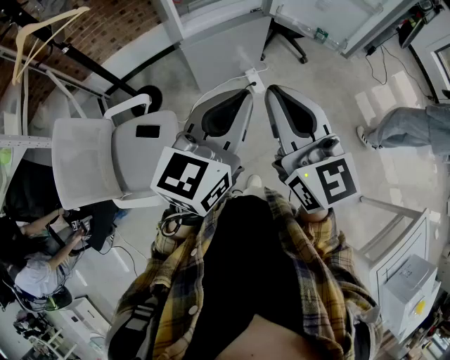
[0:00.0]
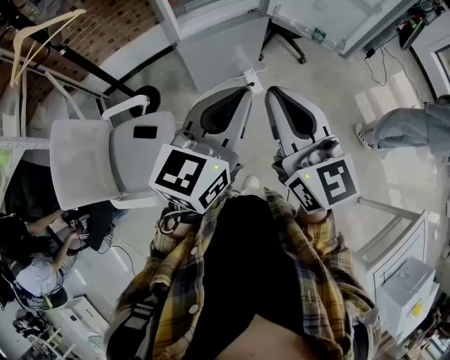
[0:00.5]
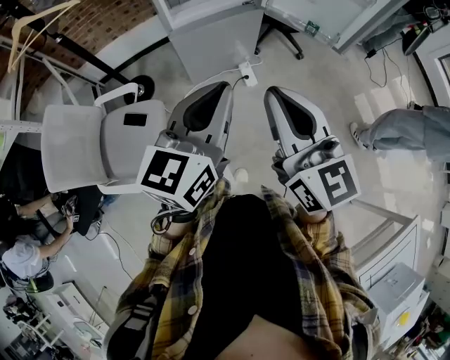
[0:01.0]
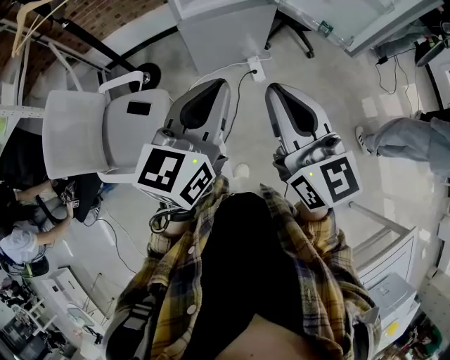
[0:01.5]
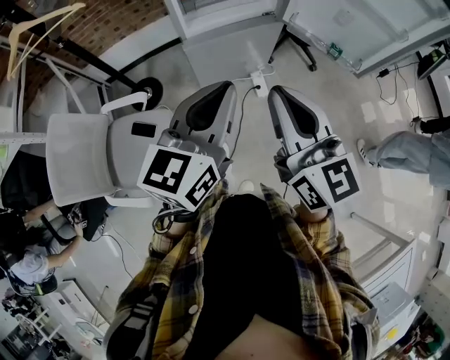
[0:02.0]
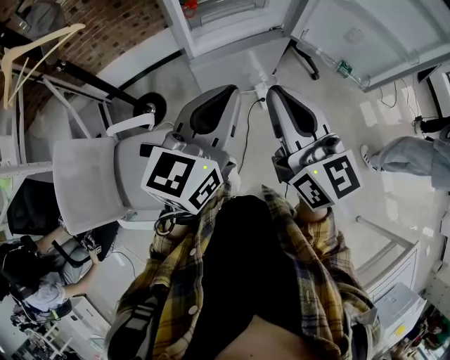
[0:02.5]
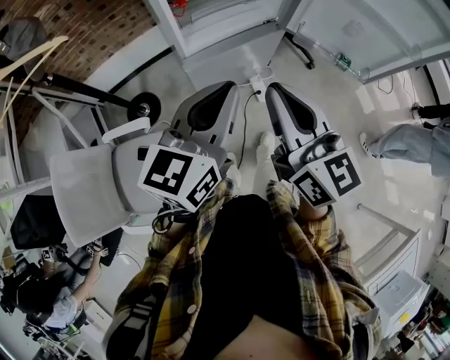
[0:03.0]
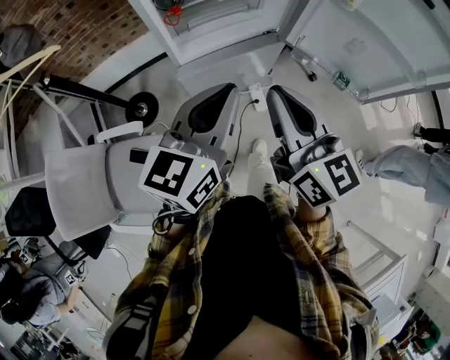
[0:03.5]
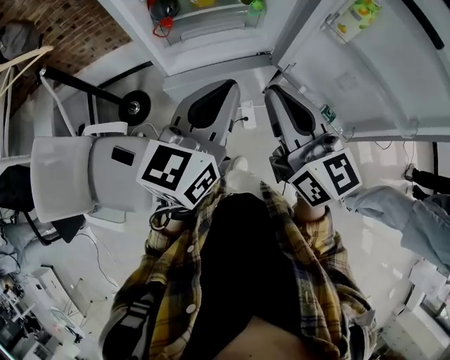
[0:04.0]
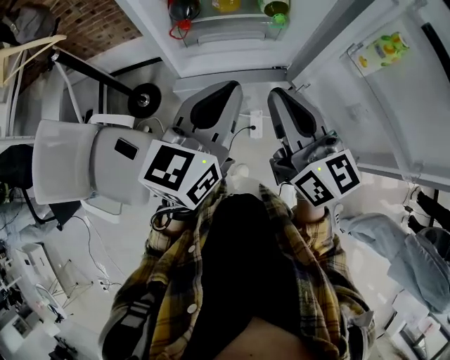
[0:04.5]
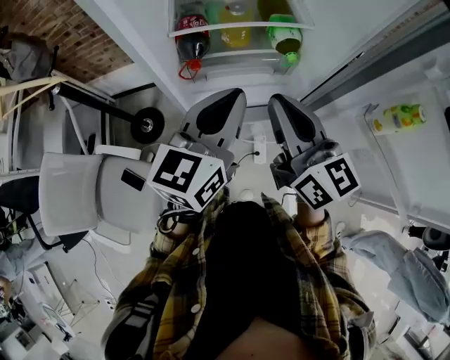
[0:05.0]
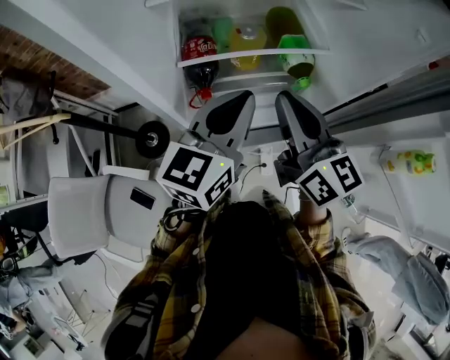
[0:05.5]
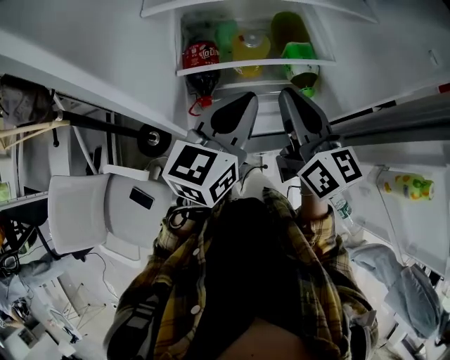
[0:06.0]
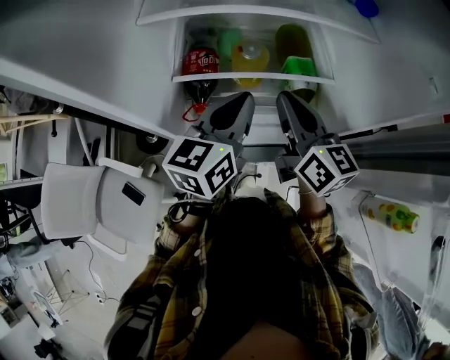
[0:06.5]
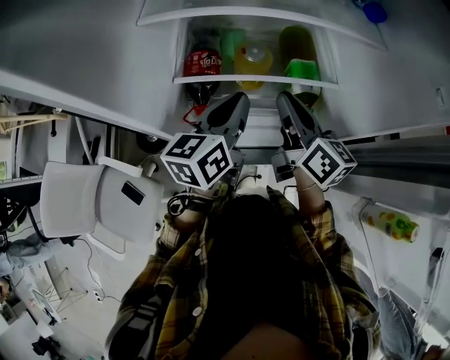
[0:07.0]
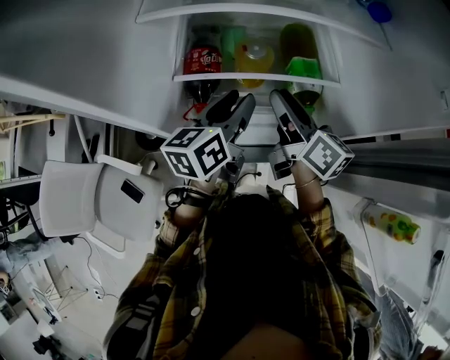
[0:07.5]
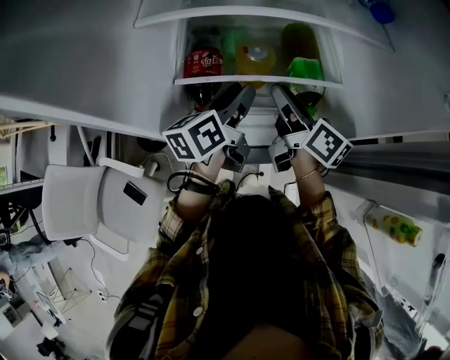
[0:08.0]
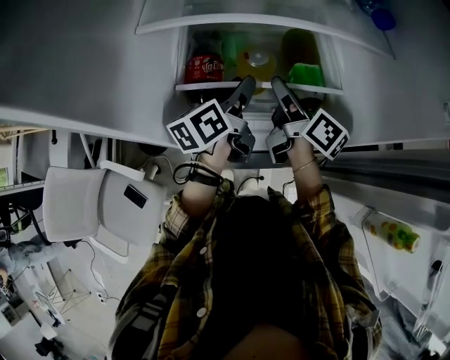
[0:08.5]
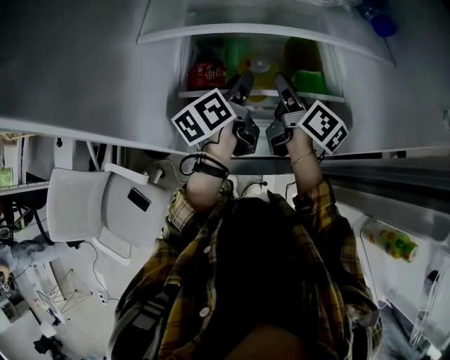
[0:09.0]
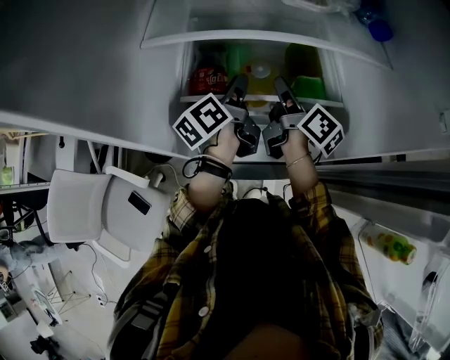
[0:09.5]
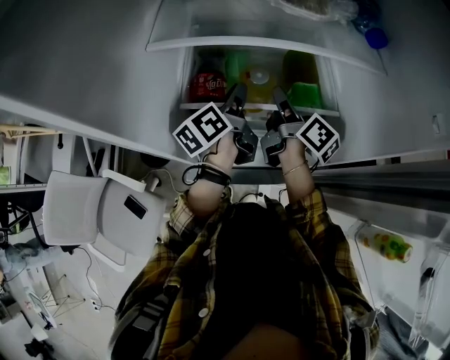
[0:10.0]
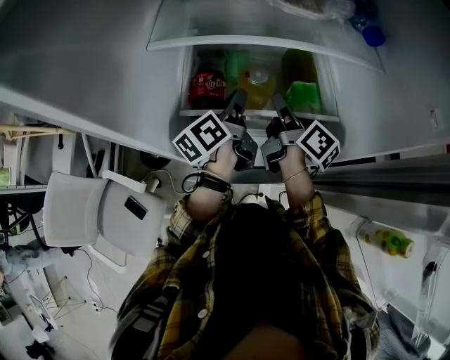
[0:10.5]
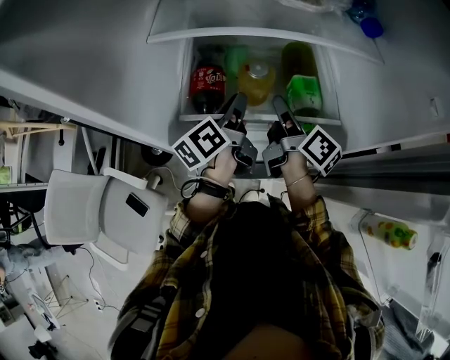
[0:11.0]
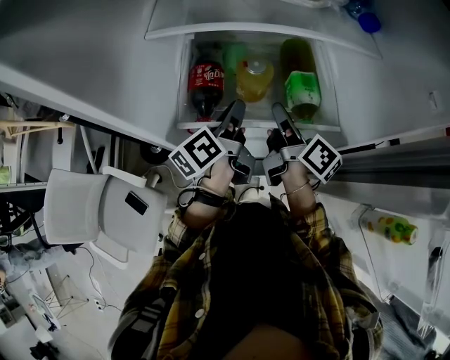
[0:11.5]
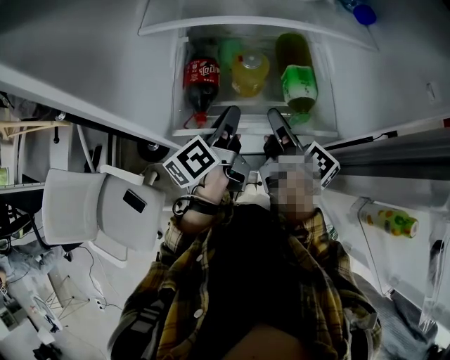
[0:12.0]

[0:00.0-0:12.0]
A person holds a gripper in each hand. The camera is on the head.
0:00.0 to 0:02.0: The two grippers go some 10 cm forward.
0:02.0 to 0:04.0: The grippers both shift forward by approximately 25 cm.
0:04.0 to 0:06.0: The grippers both shift forward by some 30 cm.
0:06.0 to 0:08.0: Both grippers travel together forward and downward, approximately 10 cm. The left gripper rotates some 40 degrees, and opens its fingers; the right gripper changes its angle by approximately 30 degrees, and opens its fingers.
0:08.0 to 0:10.0: The two grippers go roughly 5 cm forward.
0:10.0 to 0:12.0: Both grippers move backward, about 10 cm.

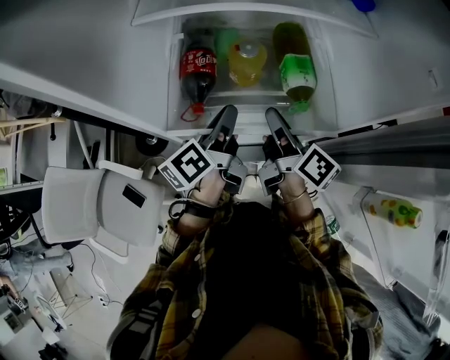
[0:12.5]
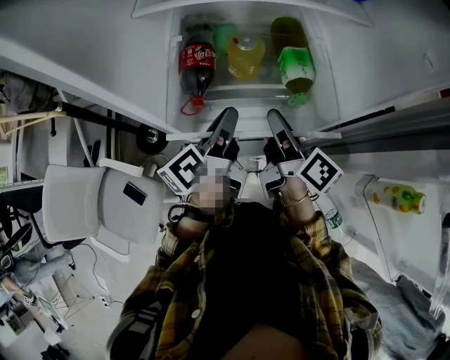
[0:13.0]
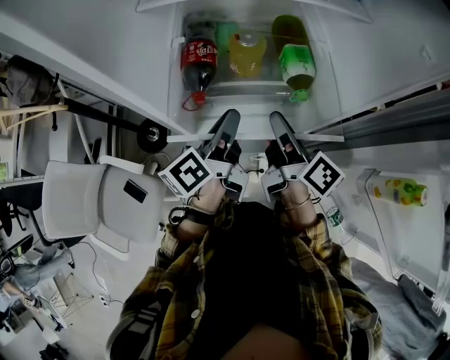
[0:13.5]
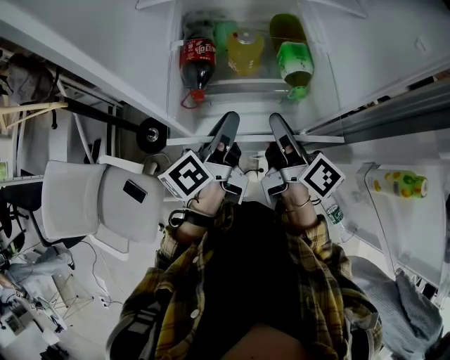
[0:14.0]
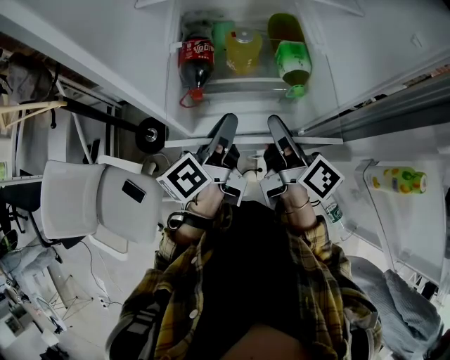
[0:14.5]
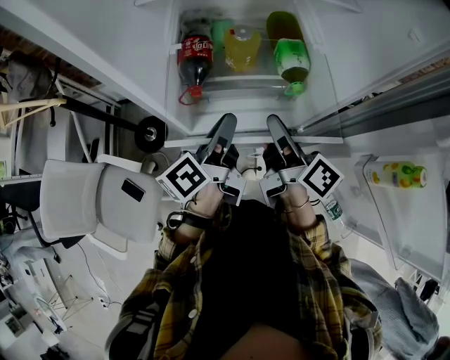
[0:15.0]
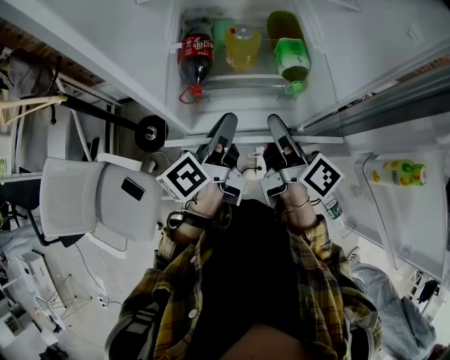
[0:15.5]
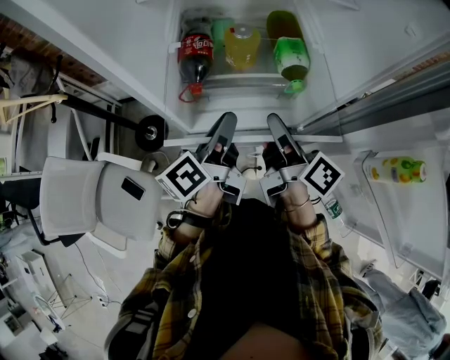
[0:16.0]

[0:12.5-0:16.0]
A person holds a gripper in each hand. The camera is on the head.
0:12.5 to 0:14.5: The two grippers go some 10 cm backward.
0:14.5 to 0:16.0: Both grippers stay put.

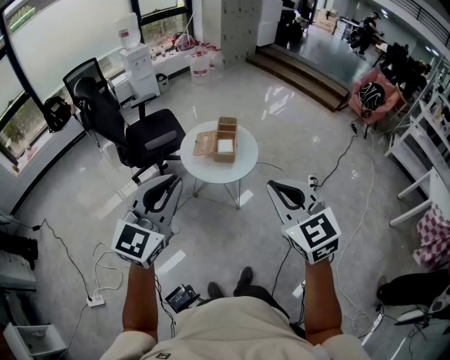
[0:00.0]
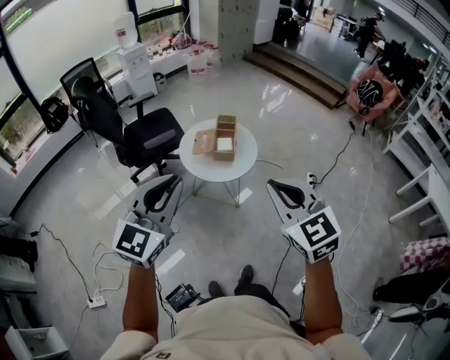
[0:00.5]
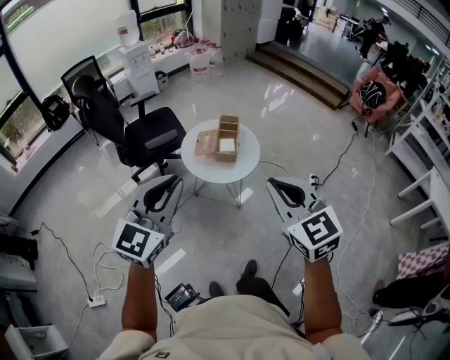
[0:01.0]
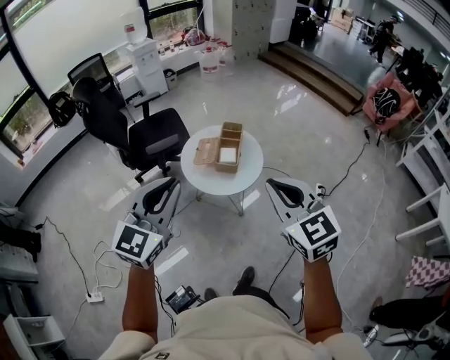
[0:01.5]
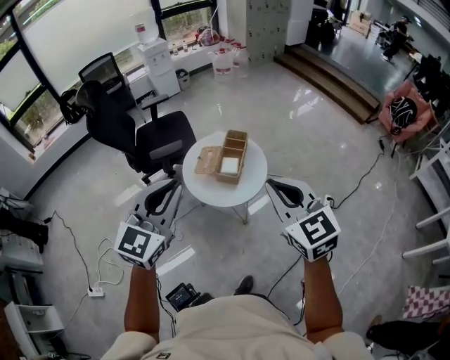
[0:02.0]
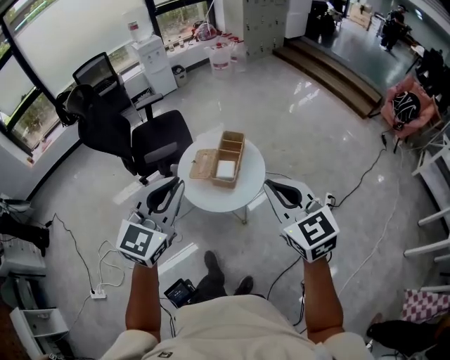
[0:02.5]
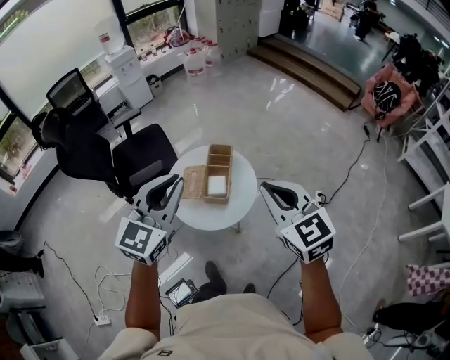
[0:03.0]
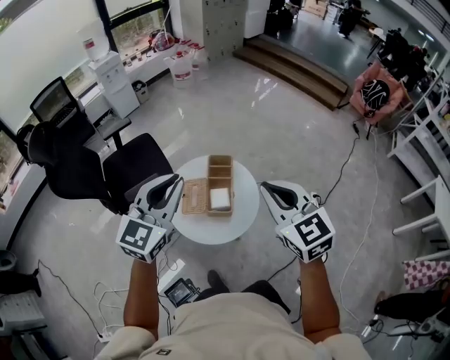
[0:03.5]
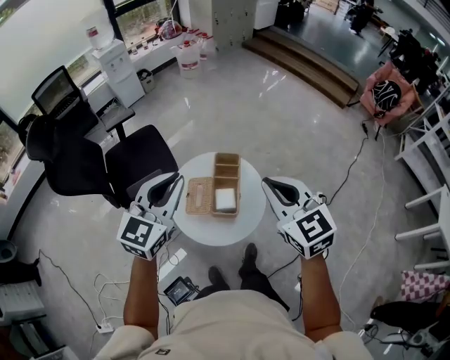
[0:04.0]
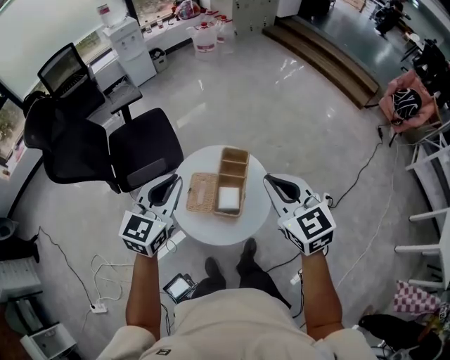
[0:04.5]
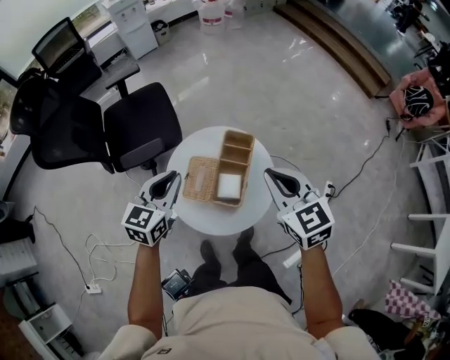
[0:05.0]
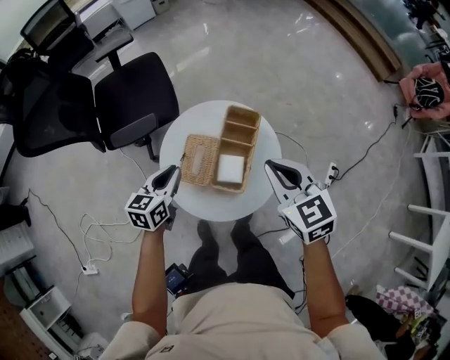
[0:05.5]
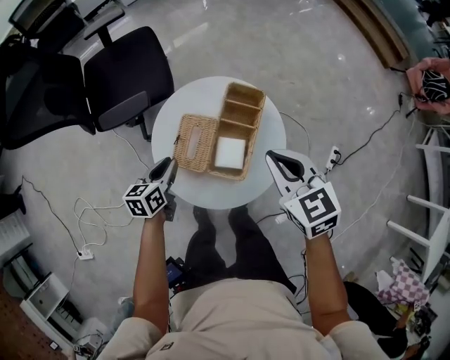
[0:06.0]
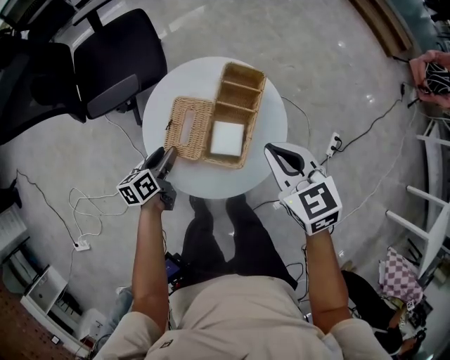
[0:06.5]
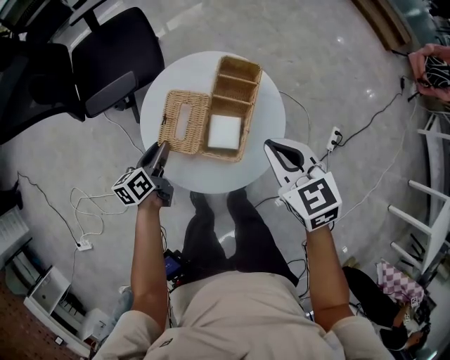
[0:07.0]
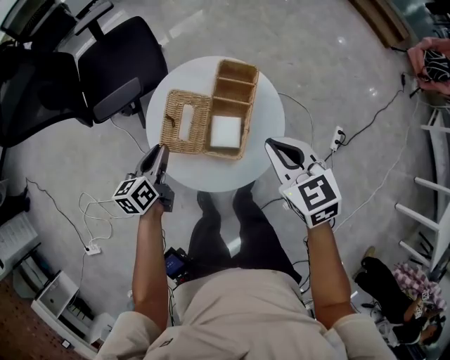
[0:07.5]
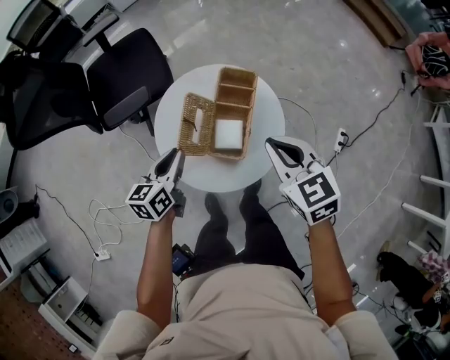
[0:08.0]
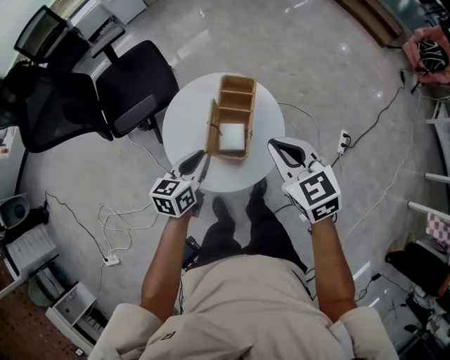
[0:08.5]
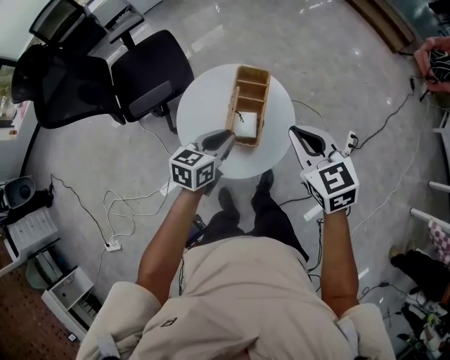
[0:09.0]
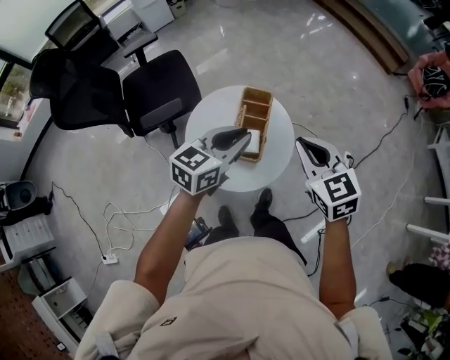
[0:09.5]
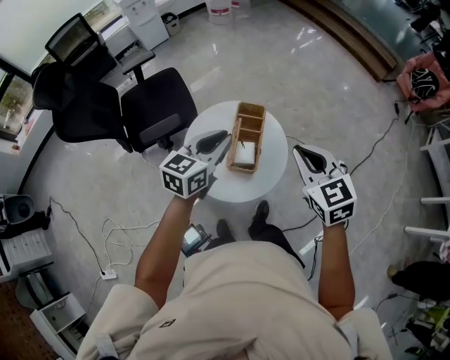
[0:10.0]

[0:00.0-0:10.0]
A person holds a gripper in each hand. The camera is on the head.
0:00.0 to 0:02.0: Both grippers travel together forward and to the right, approximately 20 cm.
0:02.0 to 0:04.0: The grippers both shift forward by approximately 30 cm.
0:04.0 to 0:06.0: The right gripper shifts about 30 cm downward and forward, and swivels about 20 degrees, while the left gripper heads downward, covering some 50 cm, and twists roughly 50 degrees counterclockwise, seen from behind.
0:06.0 to 0:08.0: The left gripper goes some 10 cm upward, and opens and closes again.
0:08.0 to 0:10.0: The grippers both shift upward by some 20 cm. The left gripper turns by roughly 30 degrees.

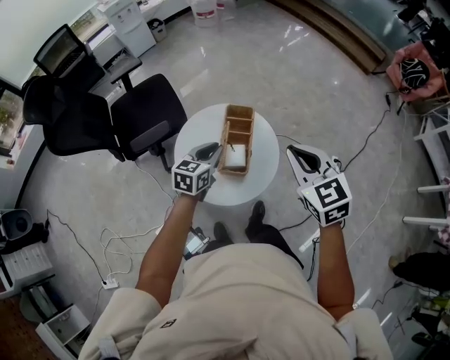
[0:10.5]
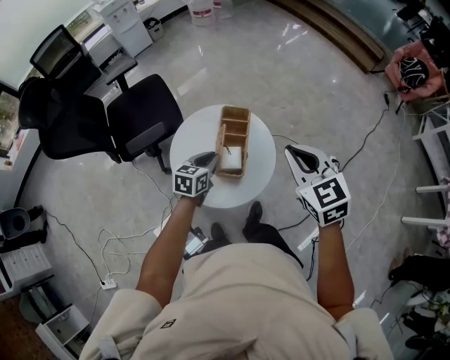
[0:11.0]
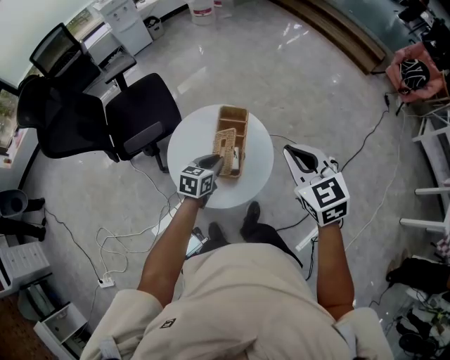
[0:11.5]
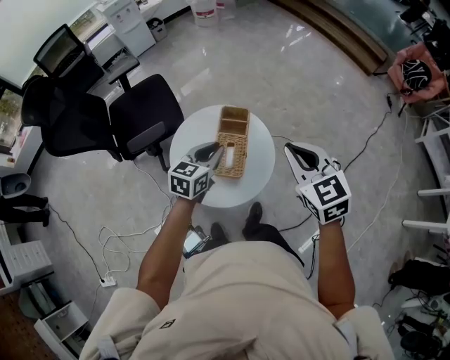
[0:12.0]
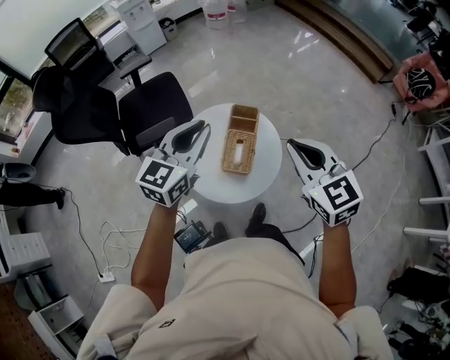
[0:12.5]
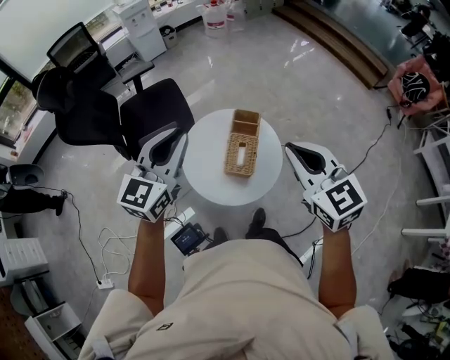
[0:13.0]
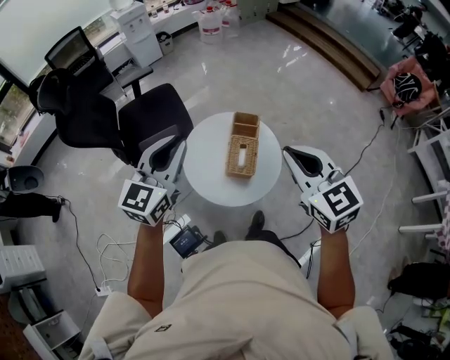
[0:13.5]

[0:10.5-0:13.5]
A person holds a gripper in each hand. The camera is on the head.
0:10.5 to 0:12.0: The left gripper travels downward and back again, some 5 cm each way.
0:12.0 to 0:13.5: The left gripper is displaced upward, to the left and backward by approximately 30 cm, and swivels some 30 degrees. Meanwhile the right gripper shifts some 15 cm to the left, upward and backward.
